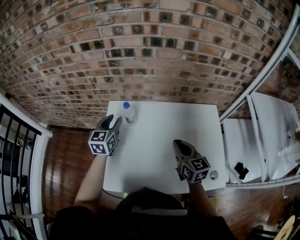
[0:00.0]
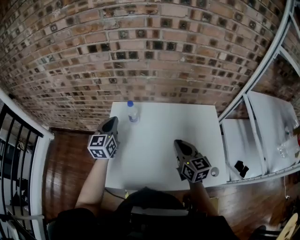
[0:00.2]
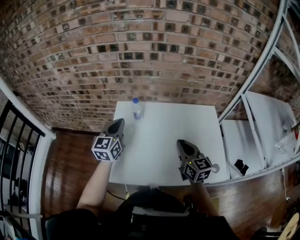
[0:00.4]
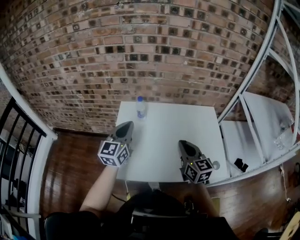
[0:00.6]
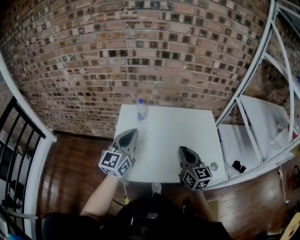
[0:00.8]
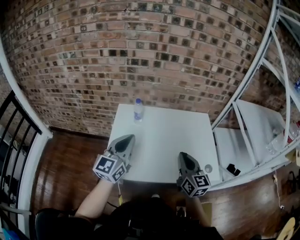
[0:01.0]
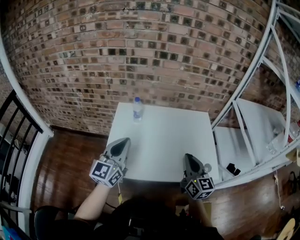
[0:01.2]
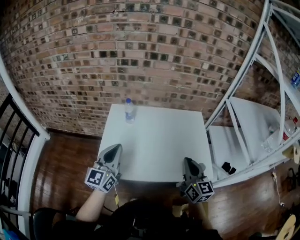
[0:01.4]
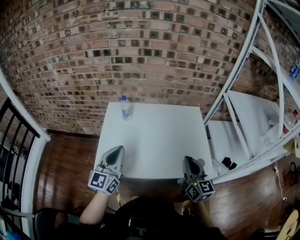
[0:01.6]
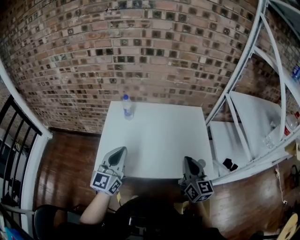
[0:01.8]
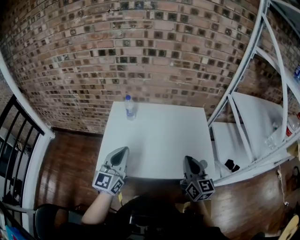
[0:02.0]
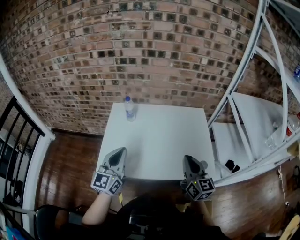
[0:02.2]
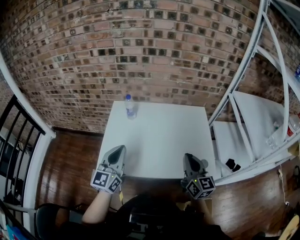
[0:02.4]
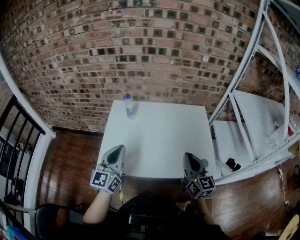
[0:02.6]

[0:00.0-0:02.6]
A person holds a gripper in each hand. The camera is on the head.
0:00.0 to 0:01.2: The two grippers go about 25 cm backward. The left gripper rotates some 20 degrees, and closes its fingers.
0:01.2 to 0:02.6: The right gripper goes some 5 cm to the right; the left gripper changes place by some 5 cm.

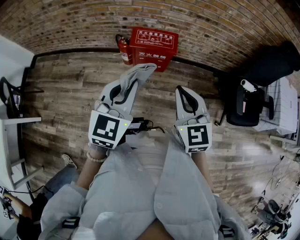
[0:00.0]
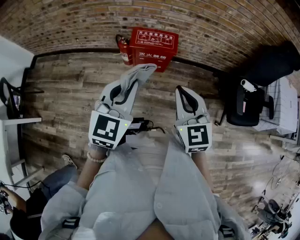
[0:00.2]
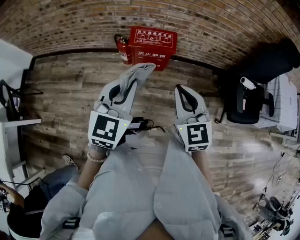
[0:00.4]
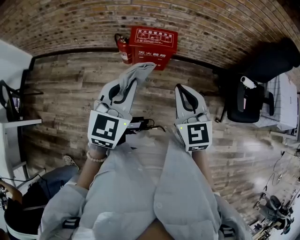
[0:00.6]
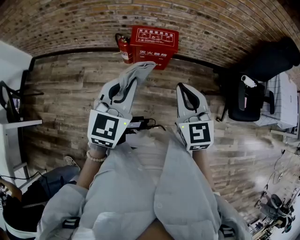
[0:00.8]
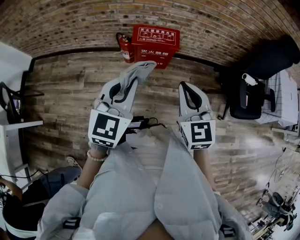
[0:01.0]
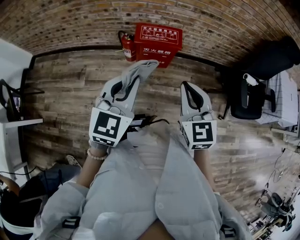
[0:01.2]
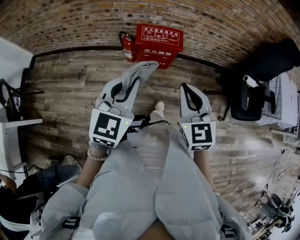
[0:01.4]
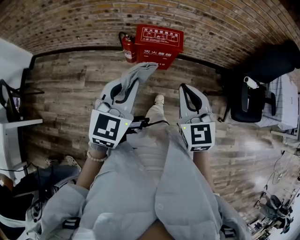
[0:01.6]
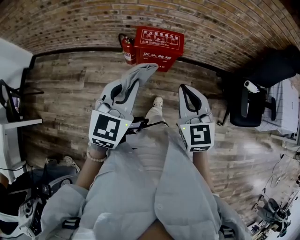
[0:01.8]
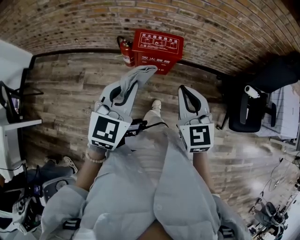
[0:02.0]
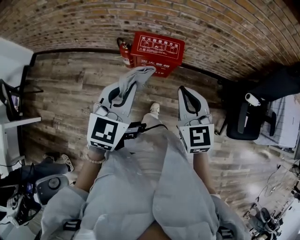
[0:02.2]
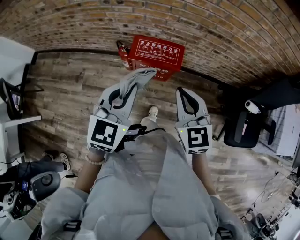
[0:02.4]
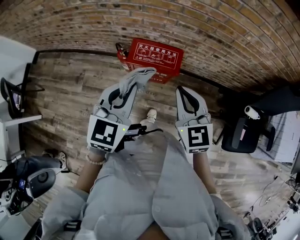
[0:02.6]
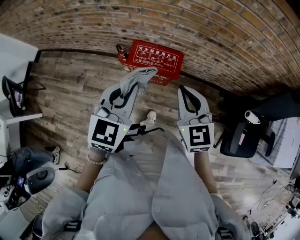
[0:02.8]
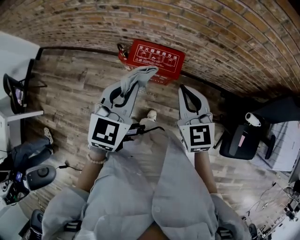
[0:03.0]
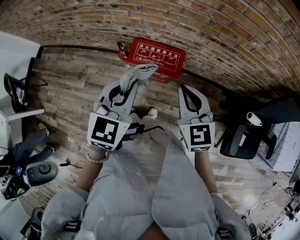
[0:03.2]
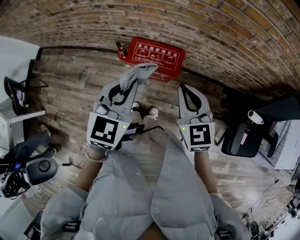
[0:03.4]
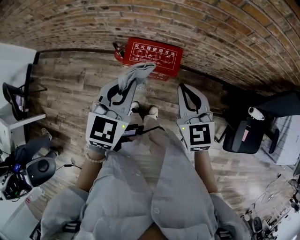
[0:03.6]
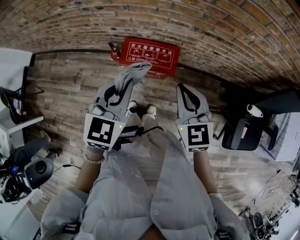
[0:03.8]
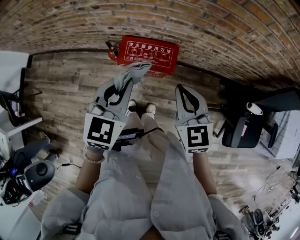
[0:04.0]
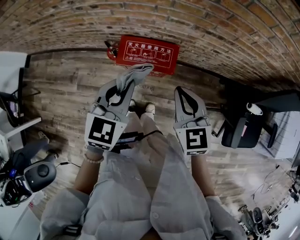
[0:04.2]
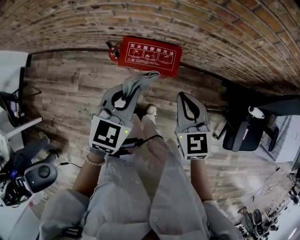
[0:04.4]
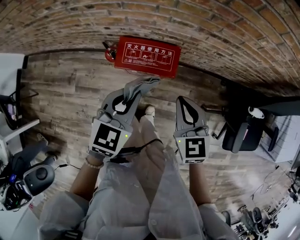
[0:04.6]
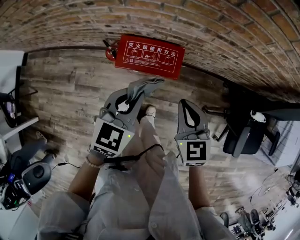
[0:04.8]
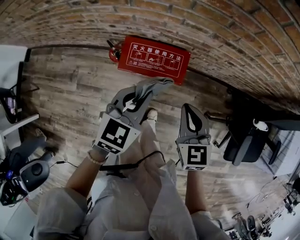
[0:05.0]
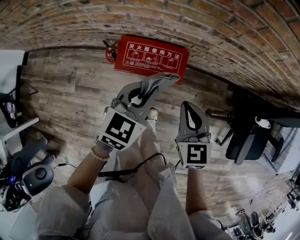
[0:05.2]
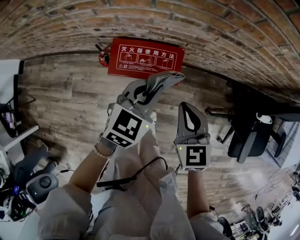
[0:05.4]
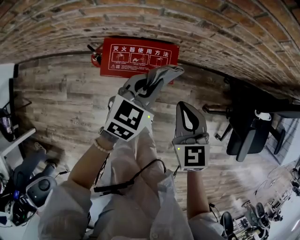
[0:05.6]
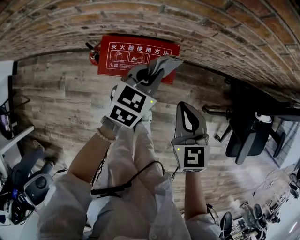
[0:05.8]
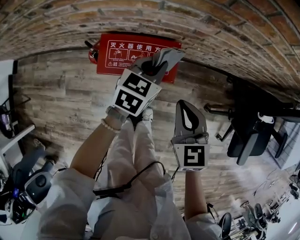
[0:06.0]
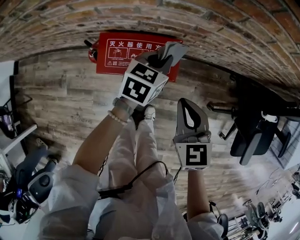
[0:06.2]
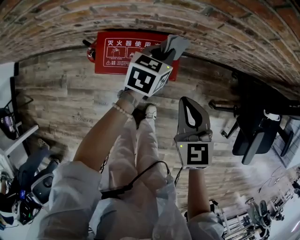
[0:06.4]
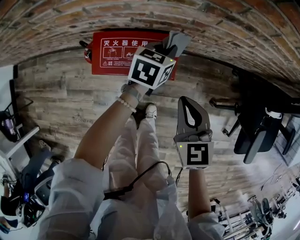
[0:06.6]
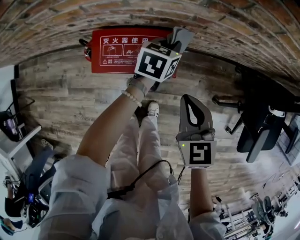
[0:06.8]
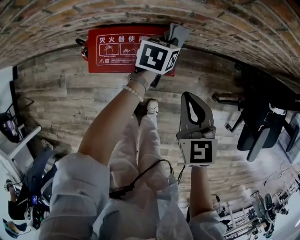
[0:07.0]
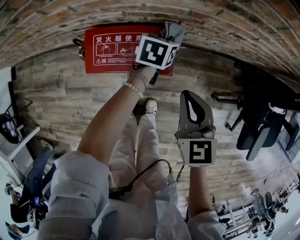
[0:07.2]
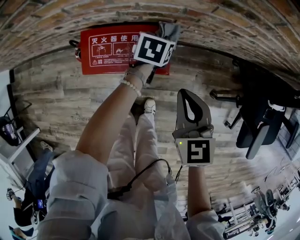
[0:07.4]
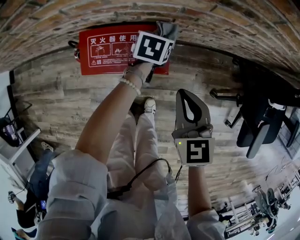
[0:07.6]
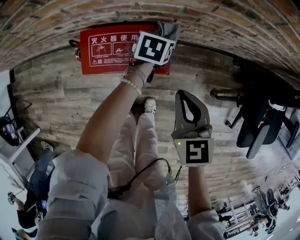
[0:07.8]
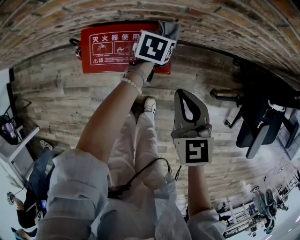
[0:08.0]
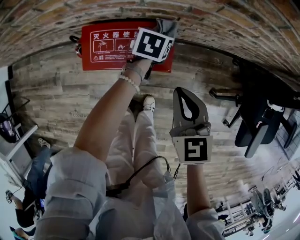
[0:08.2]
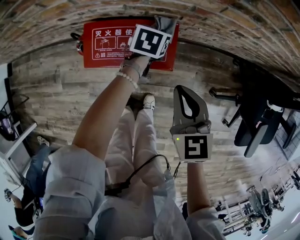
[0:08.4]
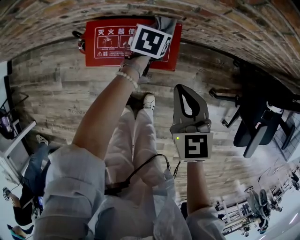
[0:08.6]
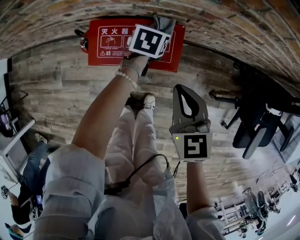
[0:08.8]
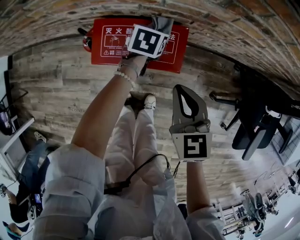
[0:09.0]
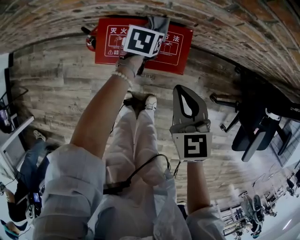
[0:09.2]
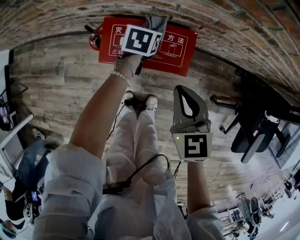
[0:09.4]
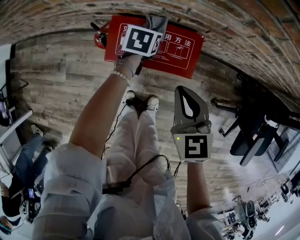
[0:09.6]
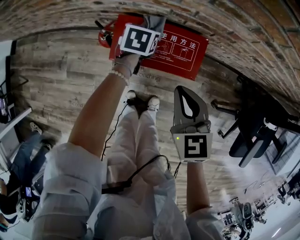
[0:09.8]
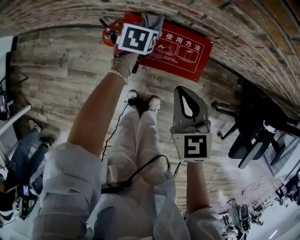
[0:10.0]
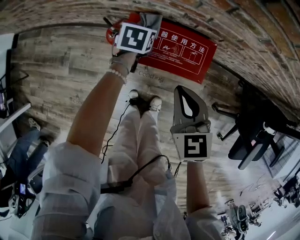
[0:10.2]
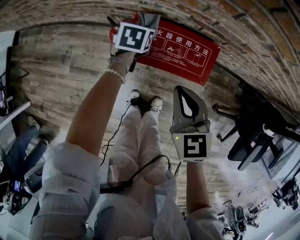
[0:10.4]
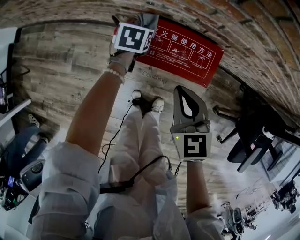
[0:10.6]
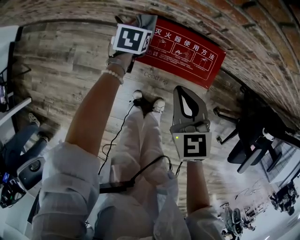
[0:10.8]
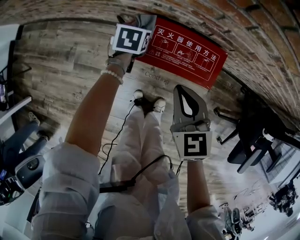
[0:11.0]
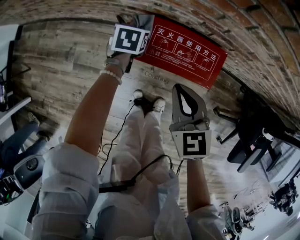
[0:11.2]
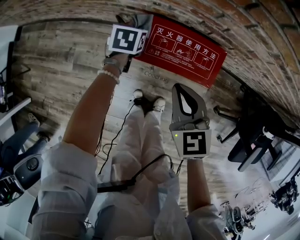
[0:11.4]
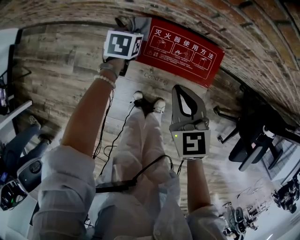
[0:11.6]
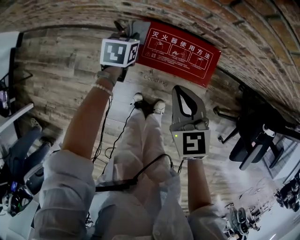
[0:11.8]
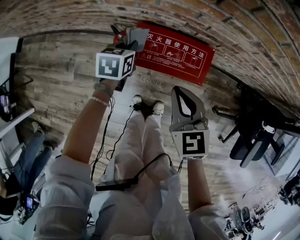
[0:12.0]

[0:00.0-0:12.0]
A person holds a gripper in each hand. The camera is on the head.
0:00.0 to 0:01.6: The left gripper goes approximately 5 cm to the left.
0:01.6 to 0:03.0: The right gripper shifts about 25 cm forward. Meanwhile the left gripper goes roughly 25 cm forward and to the right.
0:03.0 to 0:04.4: The left gripper heads downward and forward, covering some 10 cm. The right gripper heads downward, covering roughly 5 cm.
0:04.4 to 0:06.0: The right gripper travels downward by some 15 cm; the left gripper travels downward, forward and to the right by some 30 cm.
0:06.0 to 0:07.6: The left gripper is displaced downward and forward by about 20 cm, and rotates some 20 degrees, while the right gripper changes place by approximately 5 cm.
0:07.6 to 0:09.0: Both grippers travel together to the left, approximately 5 cm.
0:09.0 to 0:10.4: The right gripper travels to the left by roughly 10 cm. The left gripper travels to the left by roughly 20 cm.
0:10.4 to 0:12.0: The left gripper is displaced upward by roughly 5 cm.

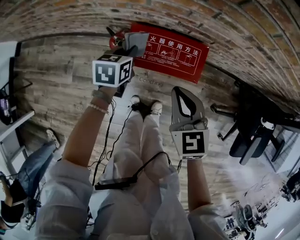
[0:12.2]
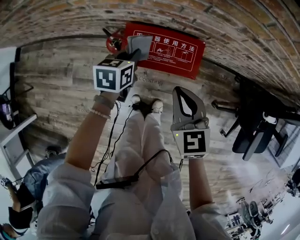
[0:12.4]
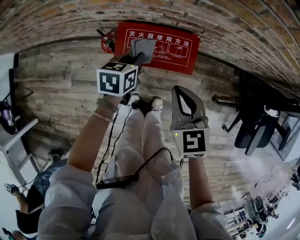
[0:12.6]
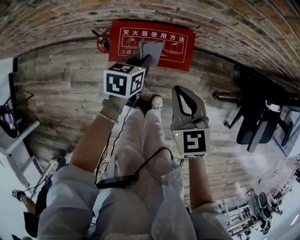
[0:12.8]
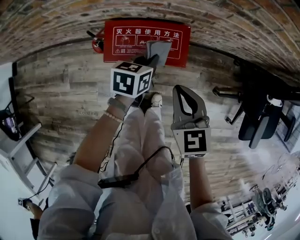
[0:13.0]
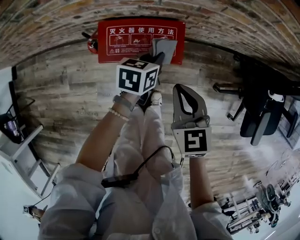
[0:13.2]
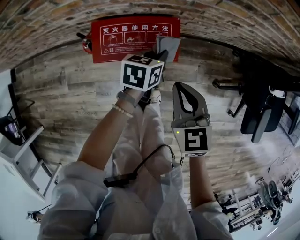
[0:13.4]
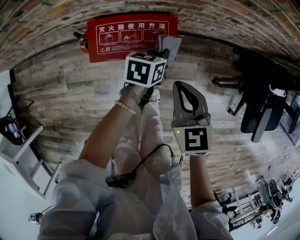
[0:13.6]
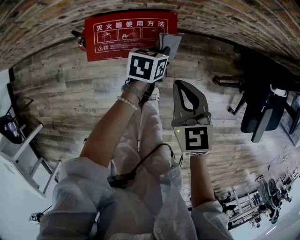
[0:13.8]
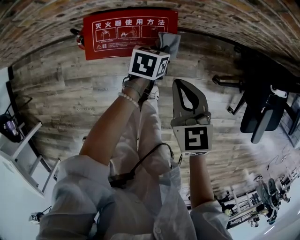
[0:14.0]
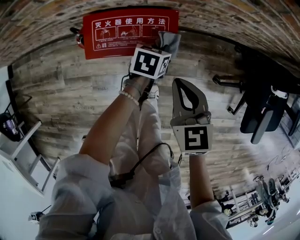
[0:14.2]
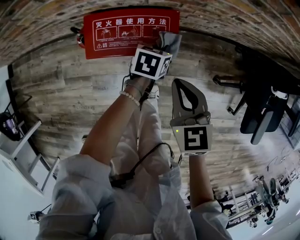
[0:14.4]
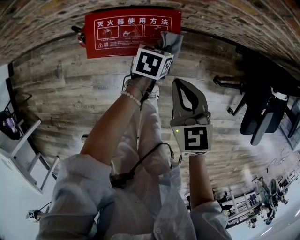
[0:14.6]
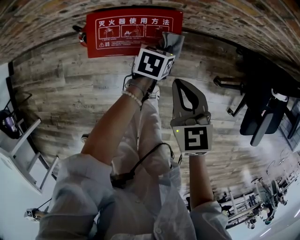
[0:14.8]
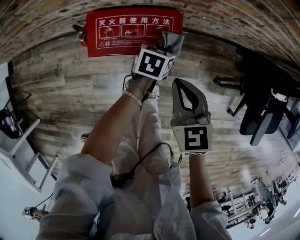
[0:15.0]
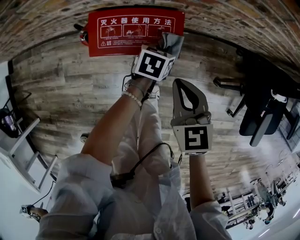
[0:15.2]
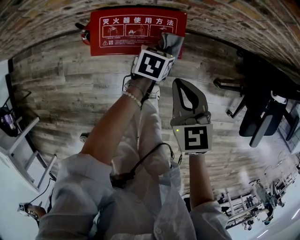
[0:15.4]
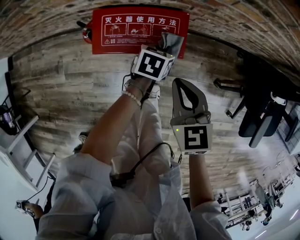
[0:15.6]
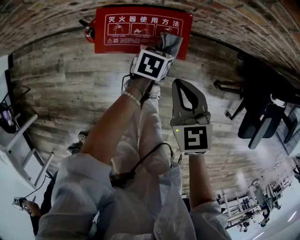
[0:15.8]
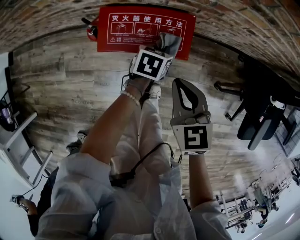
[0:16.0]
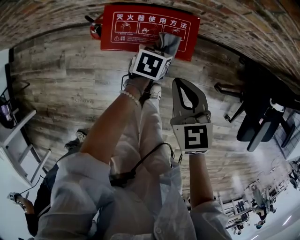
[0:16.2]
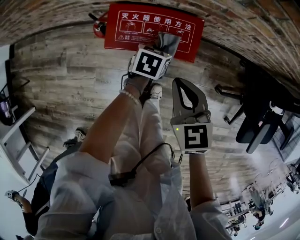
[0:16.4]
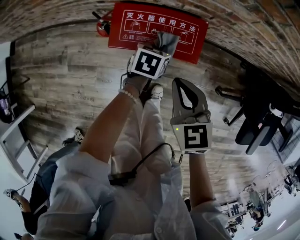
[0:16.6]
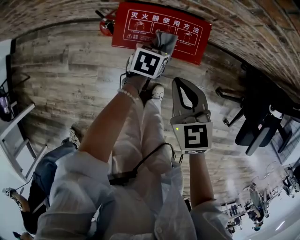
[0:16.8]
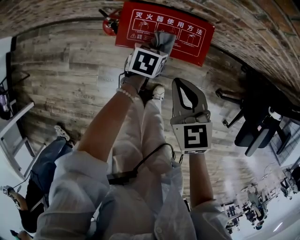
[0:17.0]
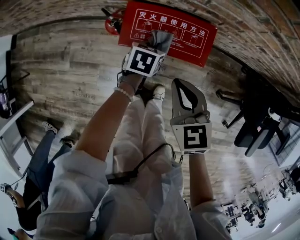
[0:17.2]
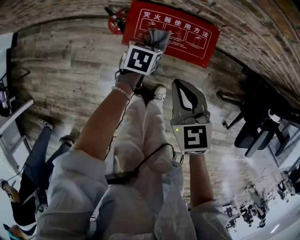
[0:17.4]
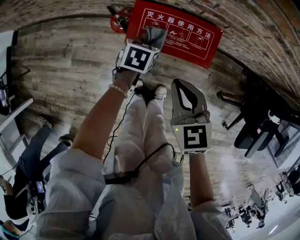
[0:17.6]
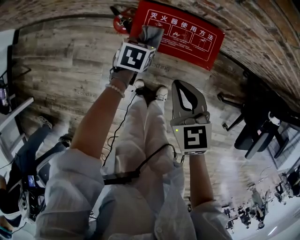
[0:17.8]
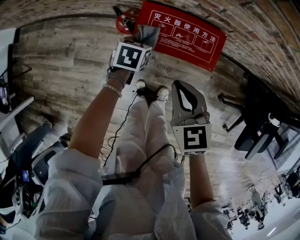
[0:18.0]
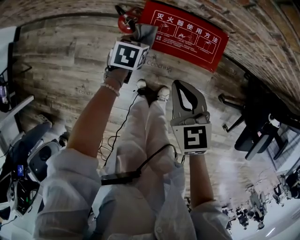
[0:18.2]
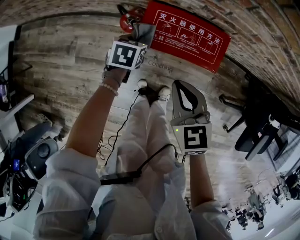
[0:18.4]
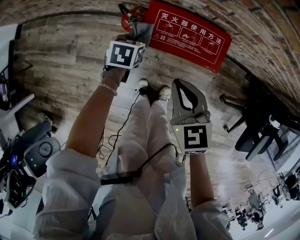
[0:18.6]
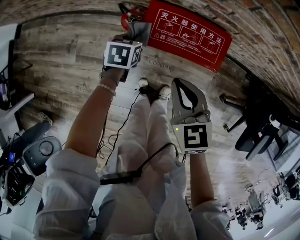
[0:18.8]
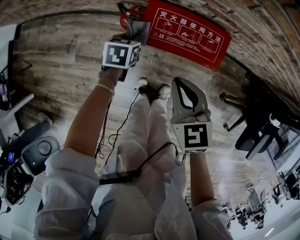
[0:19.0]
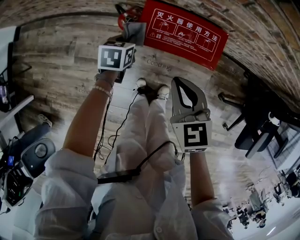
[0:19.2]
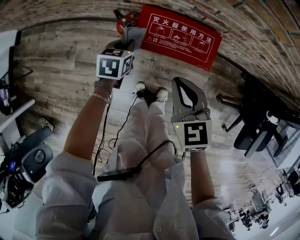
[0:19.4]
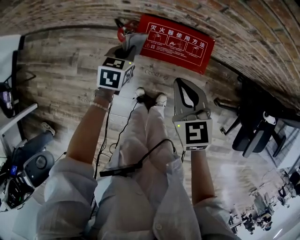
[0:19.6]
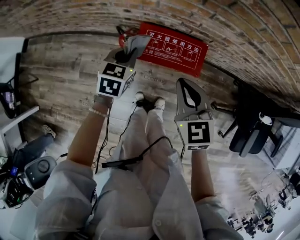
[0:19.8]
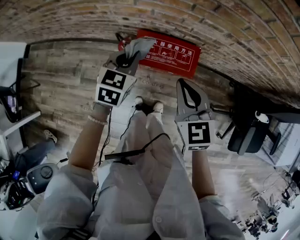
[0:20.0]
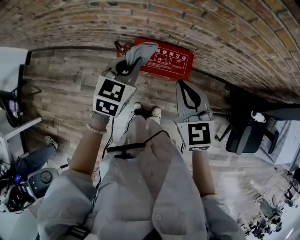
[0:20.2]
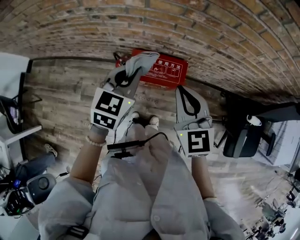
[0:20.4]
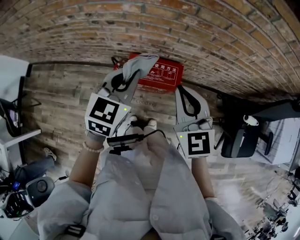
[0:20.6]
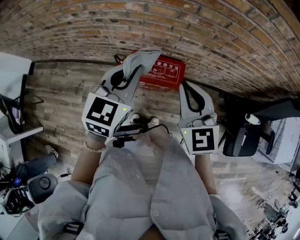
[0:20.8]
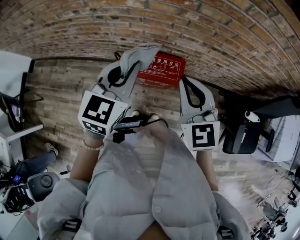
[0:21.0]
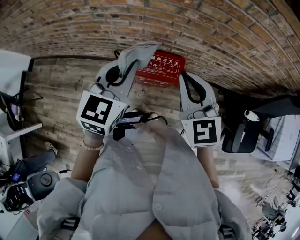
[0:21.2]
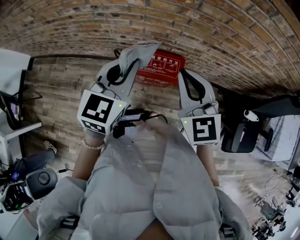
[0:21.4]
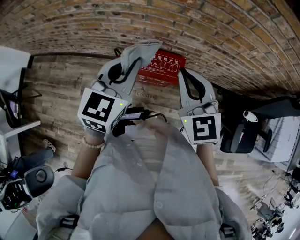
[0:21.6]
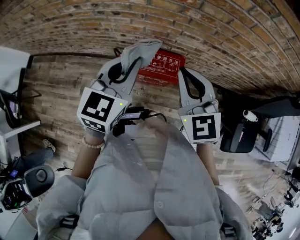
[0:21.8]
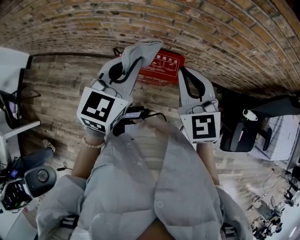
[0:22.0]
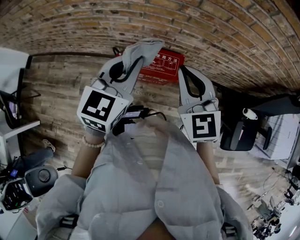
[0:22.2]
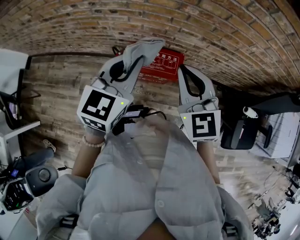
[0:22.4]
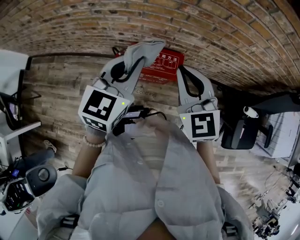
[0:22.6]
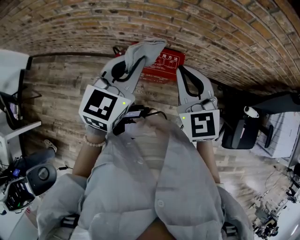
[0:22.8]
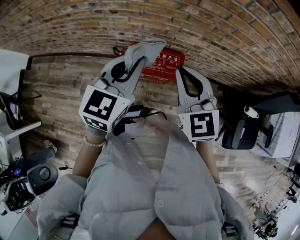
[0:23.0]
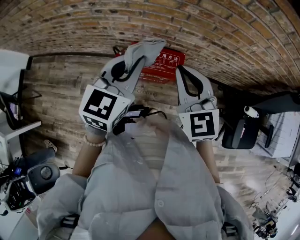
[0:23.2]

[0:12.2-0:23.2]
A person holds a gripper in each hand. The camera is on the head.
0:12.2 to 0:13.8: The left gripper heads to the right, covering roughly 30 cm. Meanwhile the right gripper goes some 15 cm to the right.
0:13.8 to 0:15.4: The grippers move only a little.
0:15.4 to 0:17.0: Both grippers travel together to the left, some 10 cm.
0:17.0 to 0:18.4: The left gripper moves to the left, about 15 cm. The right gripper goes approximately 5 cm to the left.
0:18.4 to 0:20.0: The right gripper goes some 15 cm upward. Meanwhile the left gripper heads upward, covering roughly 25 cm, and changes its angle by about 30 degrees.
0:20.0 to 0:21.6: The grippers both shift upward by roughly 20 cm.
0:21.6 to 0:23.2: The grippers make only small movements.
